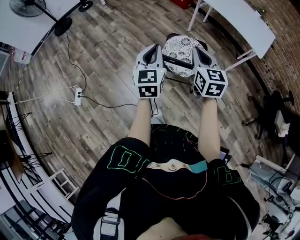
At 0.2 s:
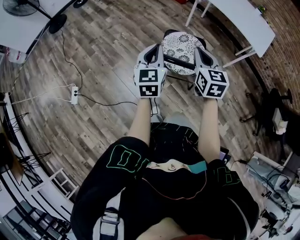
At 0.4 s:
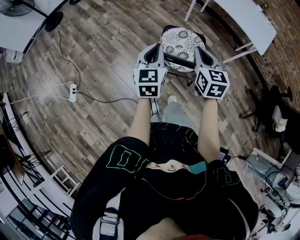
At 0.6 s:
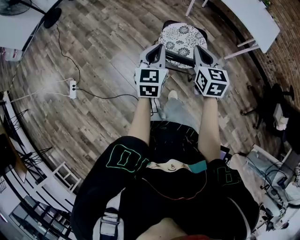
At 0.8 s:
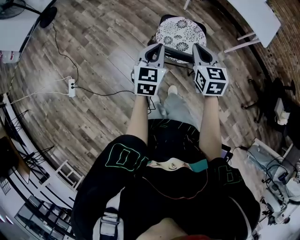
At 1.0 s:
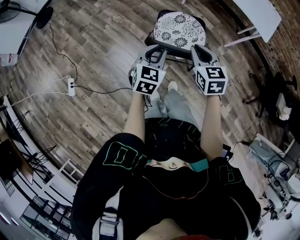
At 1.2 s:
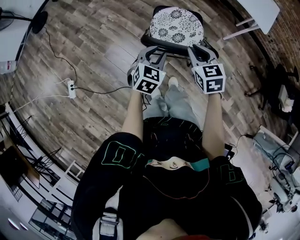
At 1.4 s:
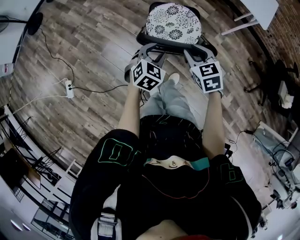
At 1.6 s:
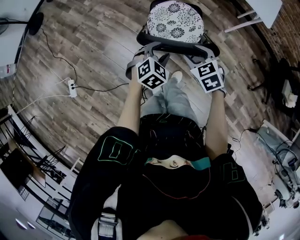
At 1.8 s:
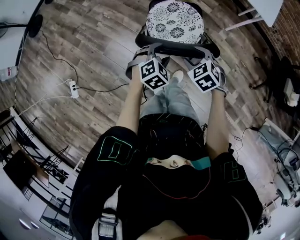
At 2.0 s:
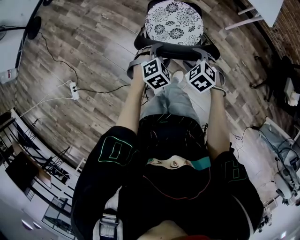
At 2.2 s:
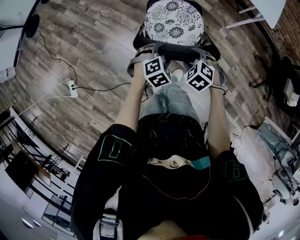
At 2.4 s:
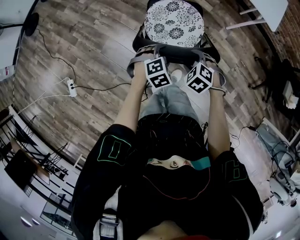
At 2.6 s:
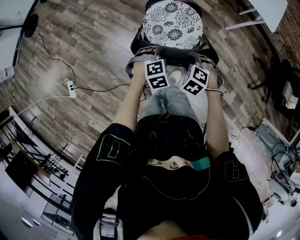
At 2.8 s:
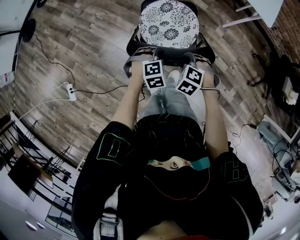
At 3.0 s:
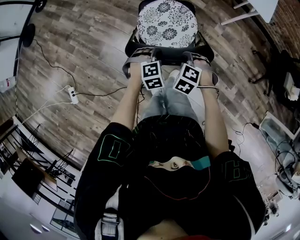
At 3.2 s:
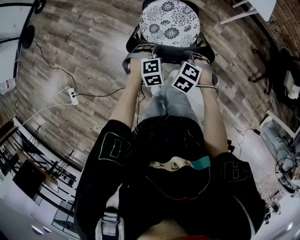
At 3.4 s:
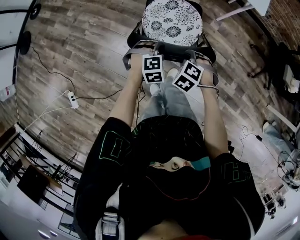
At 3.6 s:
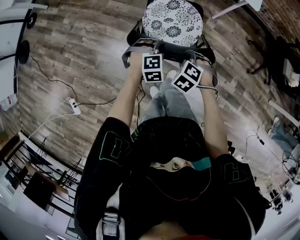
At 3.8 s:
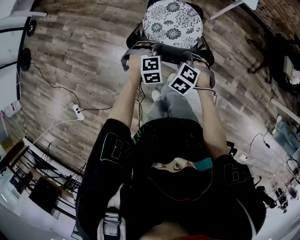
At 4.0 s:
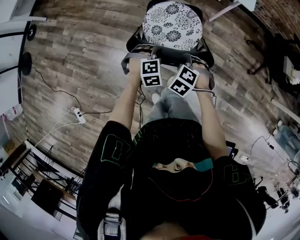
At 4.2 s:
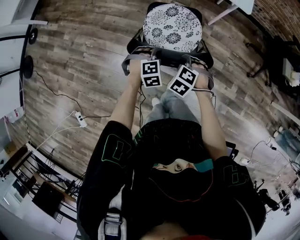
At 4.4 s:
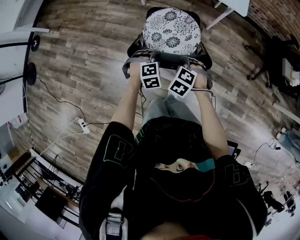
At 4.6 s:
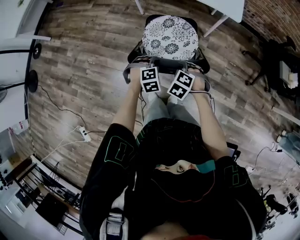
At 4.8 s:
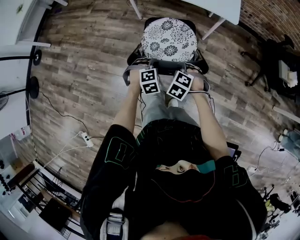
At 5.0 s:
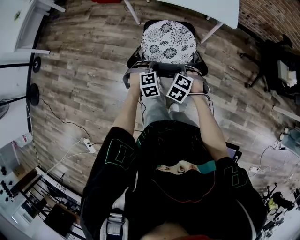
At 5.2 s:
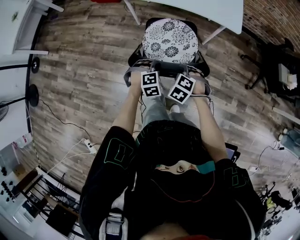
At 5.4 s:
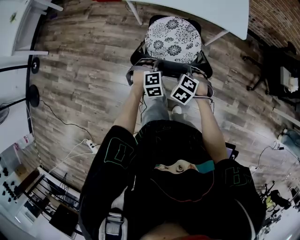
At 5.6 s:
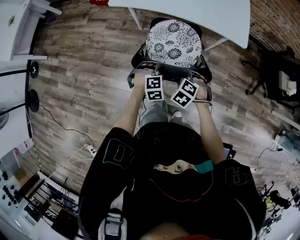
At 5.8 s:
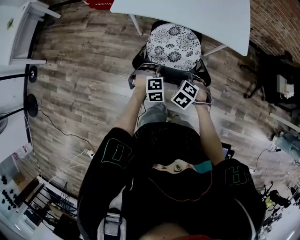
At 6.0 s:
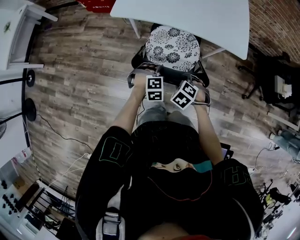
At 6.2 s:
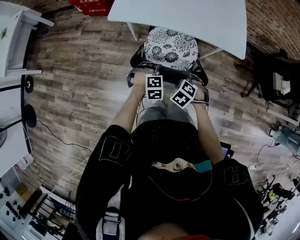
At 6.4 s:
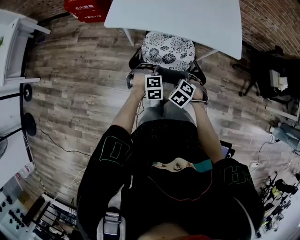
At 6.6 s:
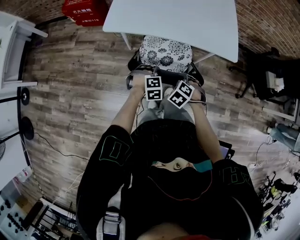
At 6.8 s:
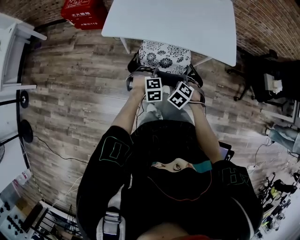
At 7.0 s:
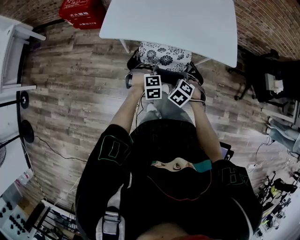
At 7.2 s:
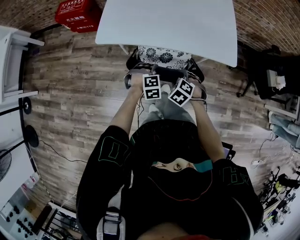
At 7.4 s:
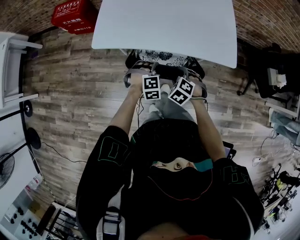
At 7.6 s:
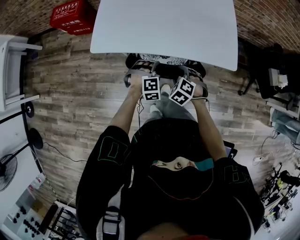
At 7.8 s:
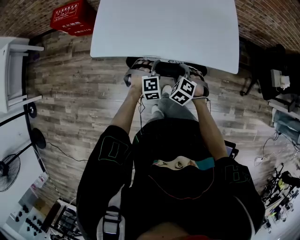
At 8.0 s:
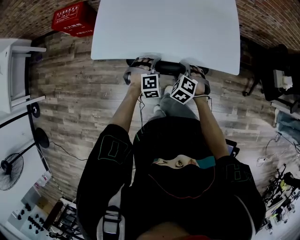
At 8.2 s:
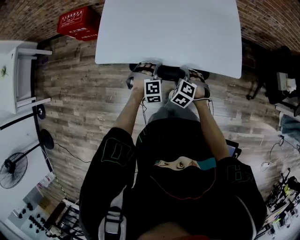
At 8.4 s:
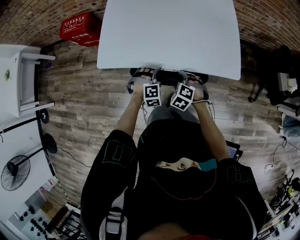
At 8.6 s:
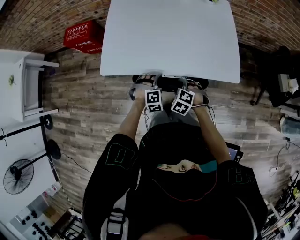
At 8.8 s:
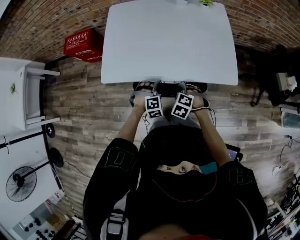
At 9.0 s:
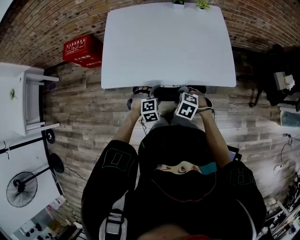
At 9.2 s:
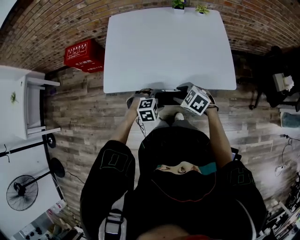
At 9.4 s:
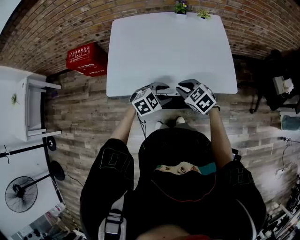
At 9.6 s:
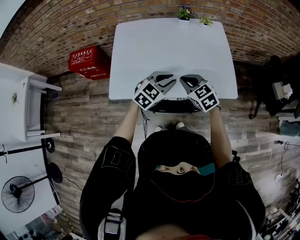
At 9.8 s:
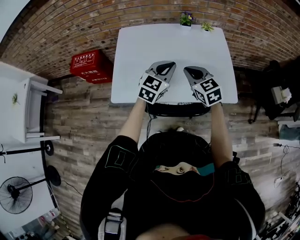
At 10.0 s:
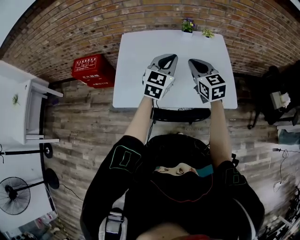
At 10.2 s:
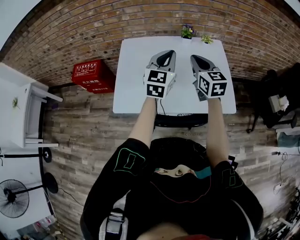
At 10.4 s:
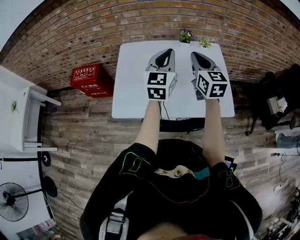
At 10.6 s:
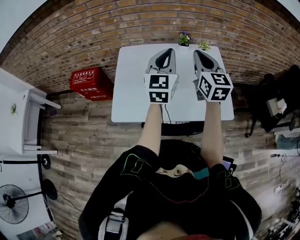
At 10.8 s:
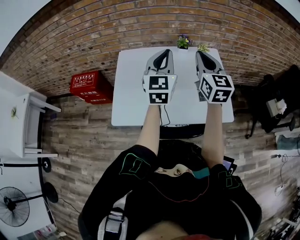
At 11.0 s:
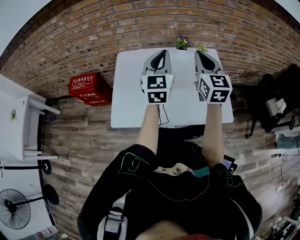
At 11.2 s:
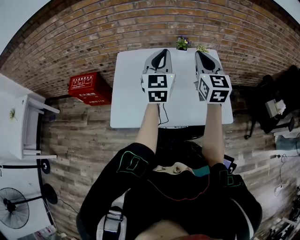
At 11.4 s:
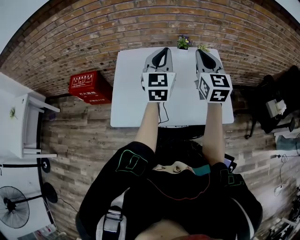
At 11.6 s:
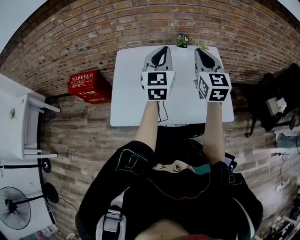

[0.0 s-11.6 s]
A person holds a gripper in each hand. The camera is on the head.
0.0 to 1.4 s: The left gripper is displaced downward and to the right by approximately 25 cm, tips its fingers downward by some 30 degrees, and opens up, while the right gripper travels downward by approximately 15 cm, turns by roughly 30 degrees, and opens.
1.4 to 2.8 s: The left gripper travels downward and to the right by some 15 cm, and swivels roughly 50 degrees, while the right gripper shifts some 15 cm downward, and points its fingers roughly 30 degrees further downward.
2.8 to 4.4 s: Both grippers travel together forward and to the right, roughly 15 cm.
4.4 to 5.8 s: The two grippers go about 20 cm forward.
5.8 to 7.2 s: Both grippers travel together forward, roughly 15 cm.
7.2 to 8.8 s: The two grippers go approximately 10 cm forward. The left gripper opens up.
8.8 to 10.2 s: Both grippers move upward, roughly 35 cm. The right gripper tips its fingers upward by roughly 60 degrees, and closes, while the left gripper angles its fingers upward, by some 60 degrees, and closes.
10.2 to 11.6 s: The left gripper moves upward, approximately 5 cm. The right gripper travels upward by roughly 10 cm.

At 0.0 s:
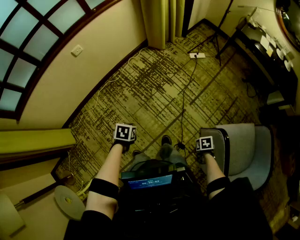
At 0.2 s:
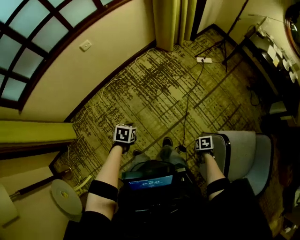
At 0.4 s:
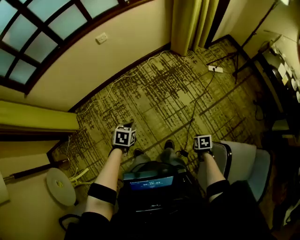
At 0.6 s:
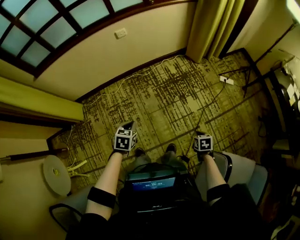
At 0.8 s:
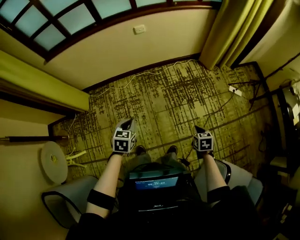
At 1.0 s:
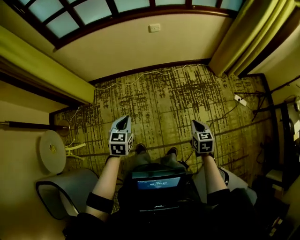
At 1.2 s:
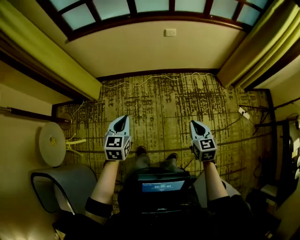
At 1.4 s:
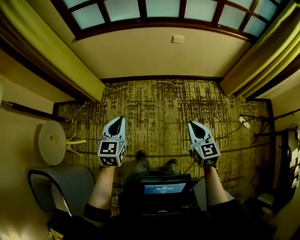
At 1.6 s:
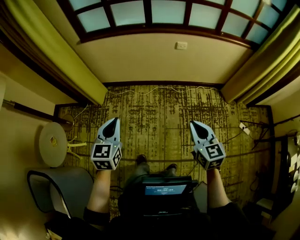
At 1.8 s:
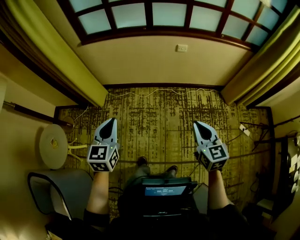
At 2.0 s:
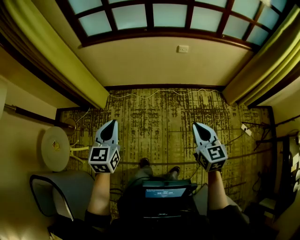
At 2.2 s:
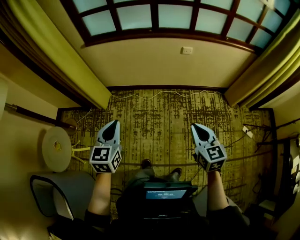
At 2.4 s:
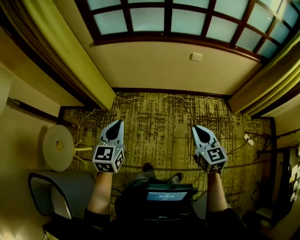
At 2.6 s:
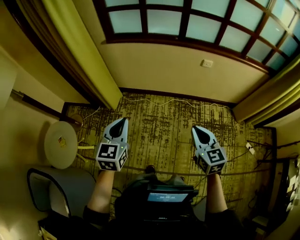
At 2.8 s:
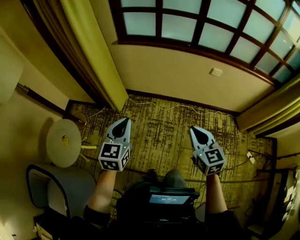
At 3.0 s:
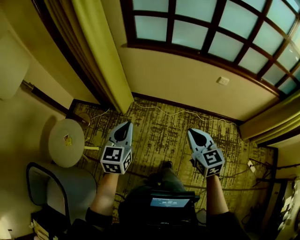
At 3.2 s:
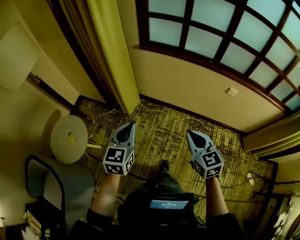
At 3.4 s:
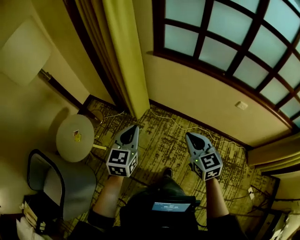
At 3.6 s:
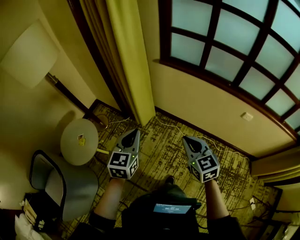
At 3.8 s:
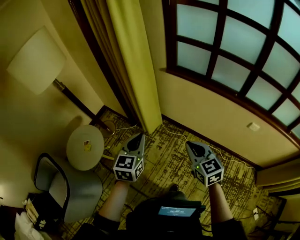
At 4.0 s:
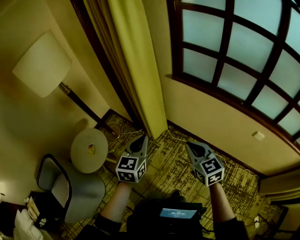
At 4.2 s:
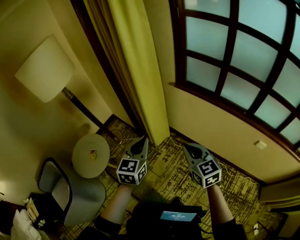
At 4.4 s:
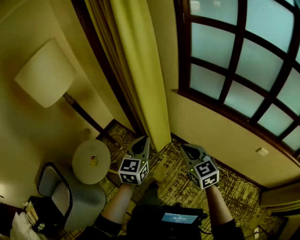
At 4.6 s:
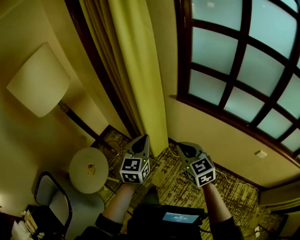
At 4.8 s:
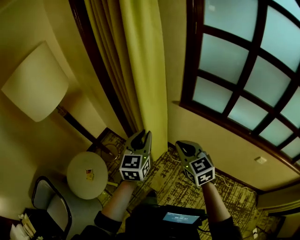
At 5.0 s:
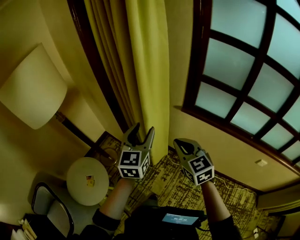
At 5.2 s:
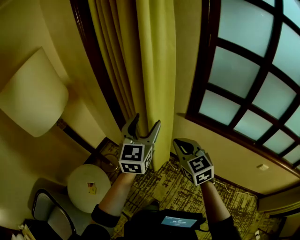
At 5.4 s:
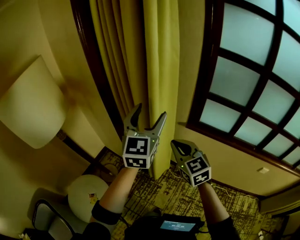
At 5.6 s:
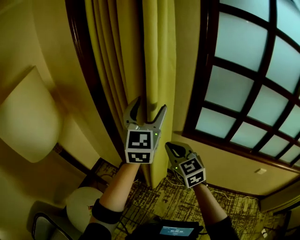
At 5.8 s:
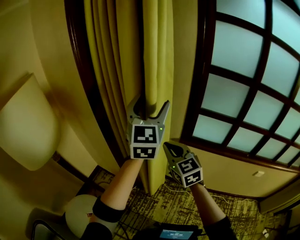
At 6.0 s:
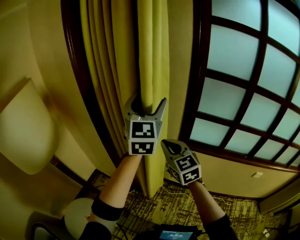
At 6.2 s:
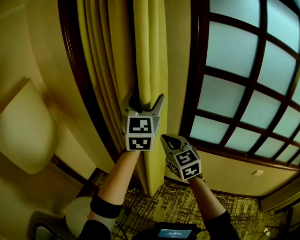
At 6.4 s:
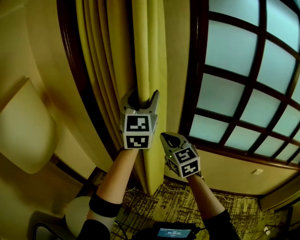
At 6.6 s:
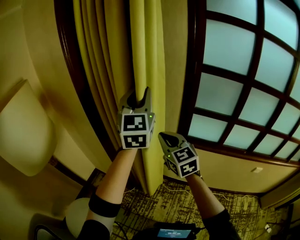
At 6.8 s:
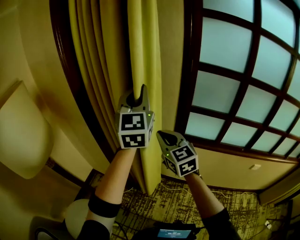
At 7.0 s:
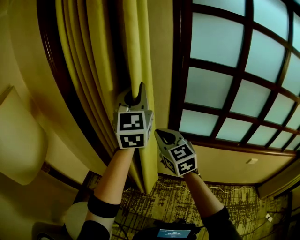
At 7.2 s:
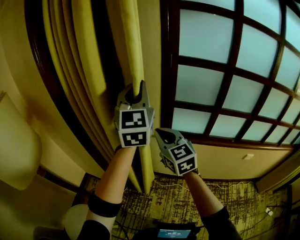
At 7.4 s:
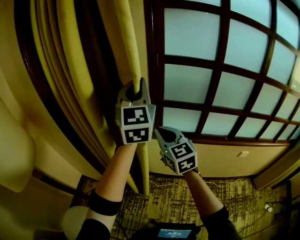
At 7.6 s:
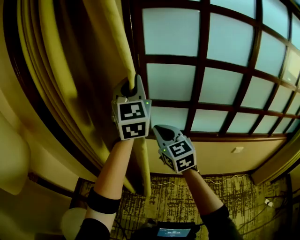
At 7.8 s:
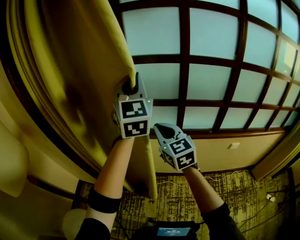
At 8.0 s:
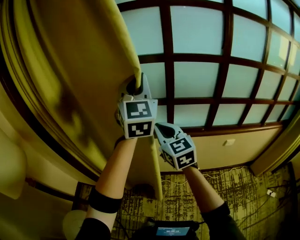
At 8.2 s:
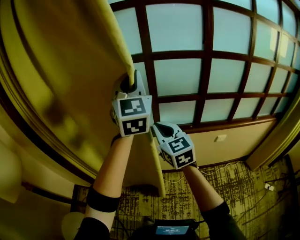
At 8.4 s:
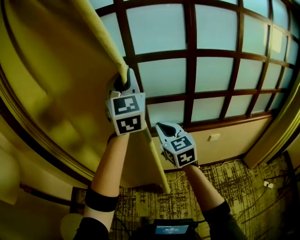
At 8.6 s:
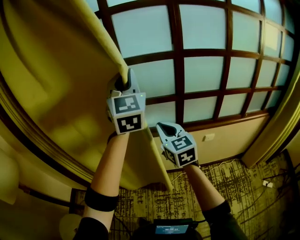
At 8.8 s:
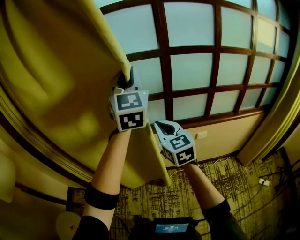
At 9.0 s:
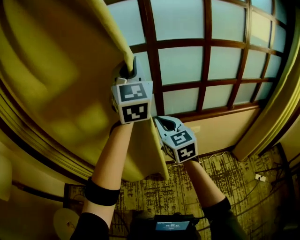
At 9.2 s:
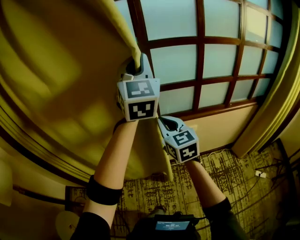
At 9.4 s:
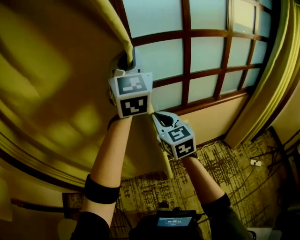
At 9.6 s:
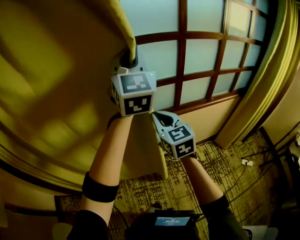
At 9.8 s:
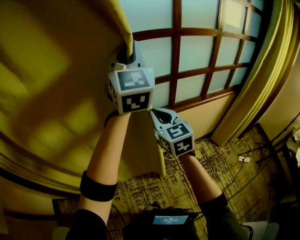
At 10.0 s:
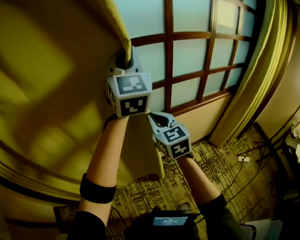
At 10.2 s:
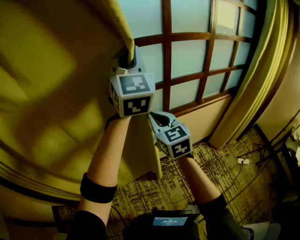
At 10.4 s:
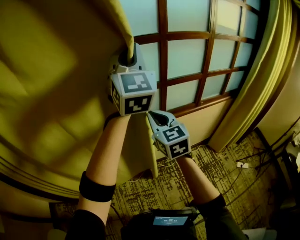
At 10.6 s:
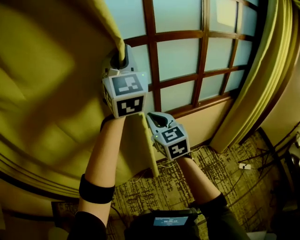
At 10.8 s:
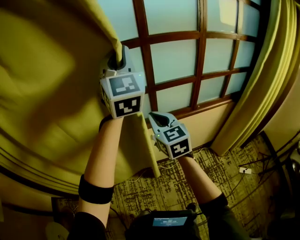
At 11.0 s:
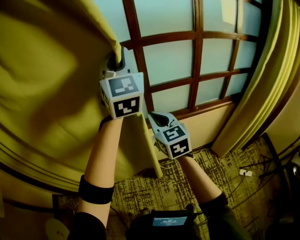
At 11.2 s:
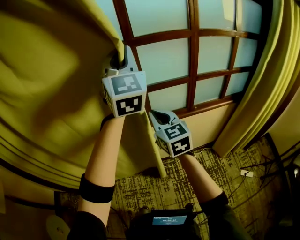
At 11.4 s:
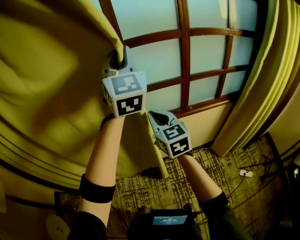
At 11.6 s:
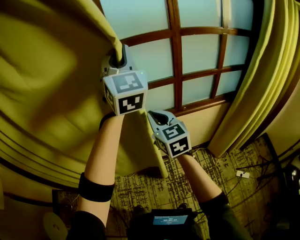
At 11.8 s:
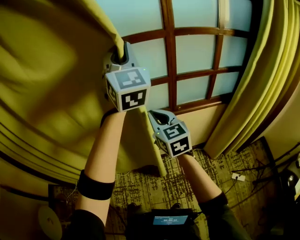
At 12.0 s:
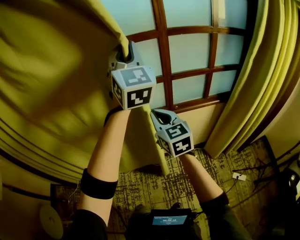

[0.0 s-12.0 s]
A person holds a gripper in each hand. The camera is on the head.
0.0 to 1.6 s: The left gripper shifts by roughly 50 cm, and angles its fingers upward, by about 50 degrees; the right gripper shifts by roughly 70 cm, and tilts its fingers some 60 degrees upward.
1.6 to 3.0 s: The grippers both shift to the left and forward by about 25 cm.
3.0 to 4.4 s: Both grippers move forward, roughly 25 cm. The right gripper rotates about 30 degrees, while the left gripper rotates roughly 20 degrees.
4.4 to 6.0 s: The left gripper travels forward and upward by approximately 50 cm, rotates about 30 degrees, and opens up. Meanwhile the right gripper travels forward, upward and to the left by some 40 cm.
6.0 to 7.6 s: Both grippers travel together to the right, approximately 20 cm. The left gripper closes.
7.6 to 9.0 s: The pair of grippers is taken to the right, some 50 cm.
9.0 to 10.4 s: Both grippers move to the right, roughly 20 cm.
10.4 to 12.0 s: Both grippers move to the right, roughly 30 cm.
